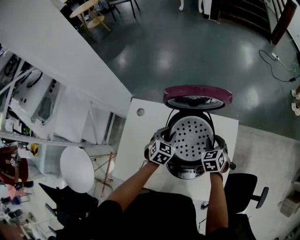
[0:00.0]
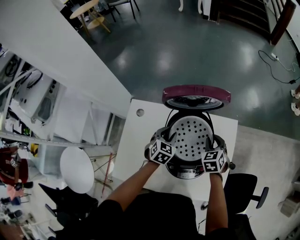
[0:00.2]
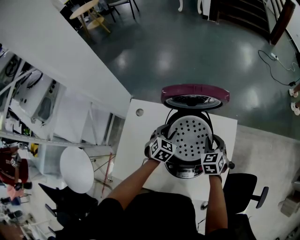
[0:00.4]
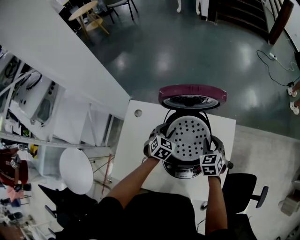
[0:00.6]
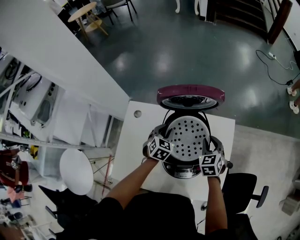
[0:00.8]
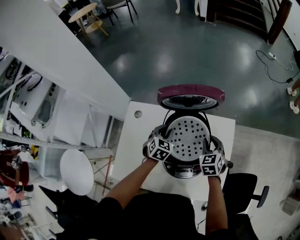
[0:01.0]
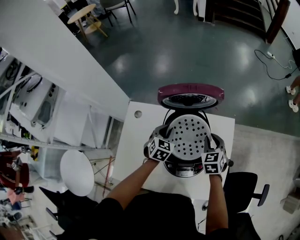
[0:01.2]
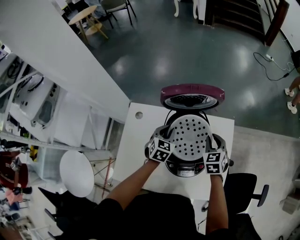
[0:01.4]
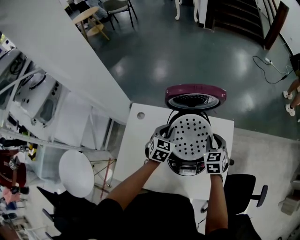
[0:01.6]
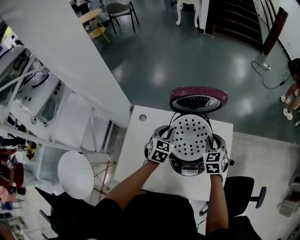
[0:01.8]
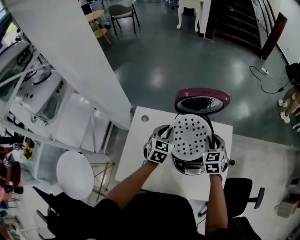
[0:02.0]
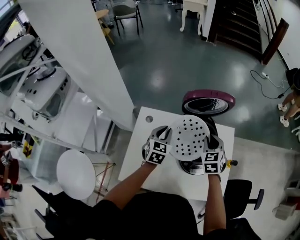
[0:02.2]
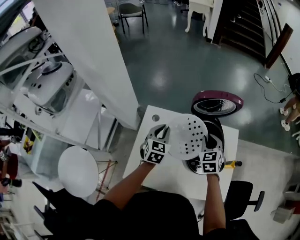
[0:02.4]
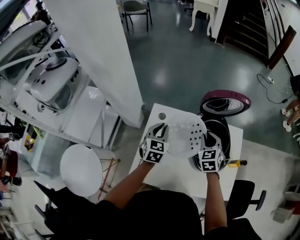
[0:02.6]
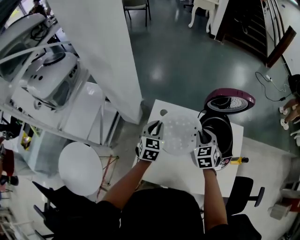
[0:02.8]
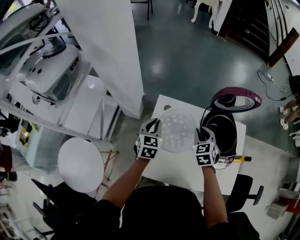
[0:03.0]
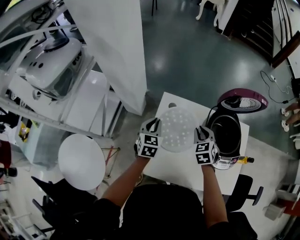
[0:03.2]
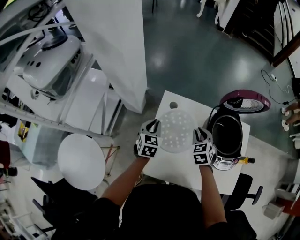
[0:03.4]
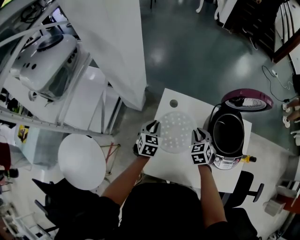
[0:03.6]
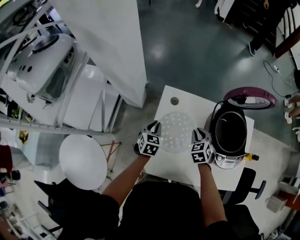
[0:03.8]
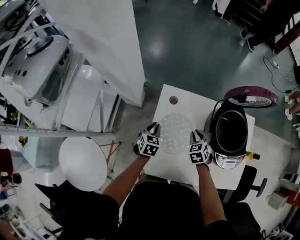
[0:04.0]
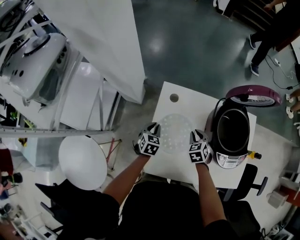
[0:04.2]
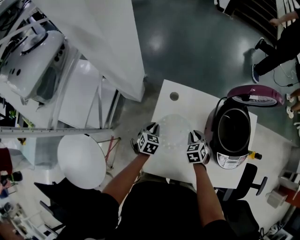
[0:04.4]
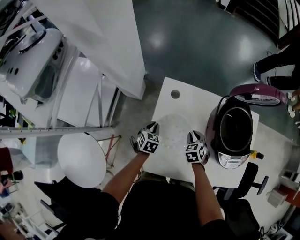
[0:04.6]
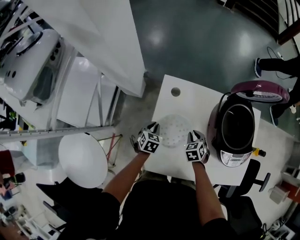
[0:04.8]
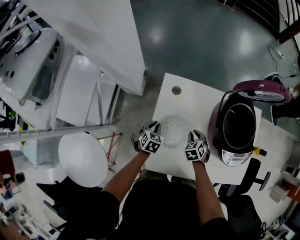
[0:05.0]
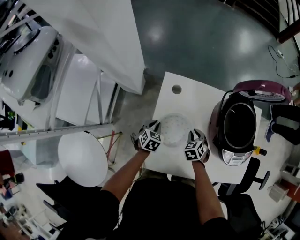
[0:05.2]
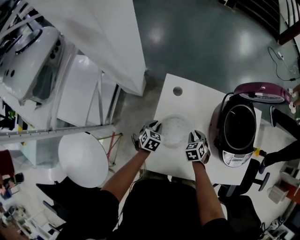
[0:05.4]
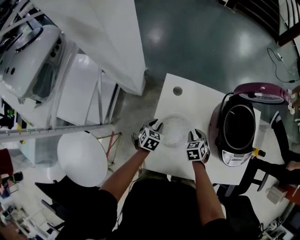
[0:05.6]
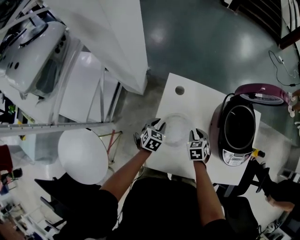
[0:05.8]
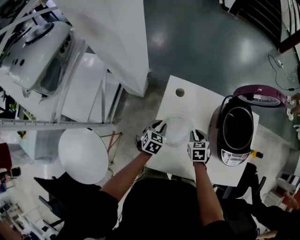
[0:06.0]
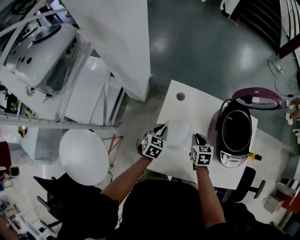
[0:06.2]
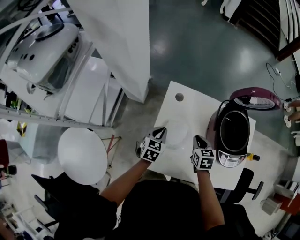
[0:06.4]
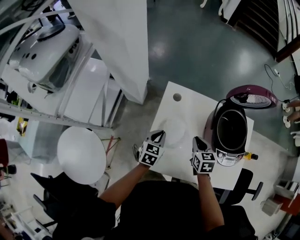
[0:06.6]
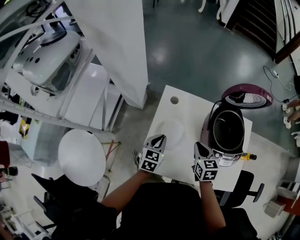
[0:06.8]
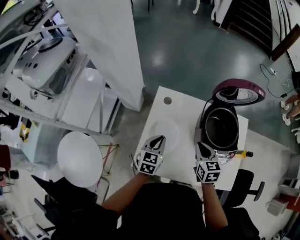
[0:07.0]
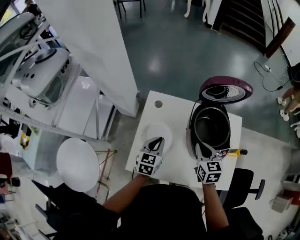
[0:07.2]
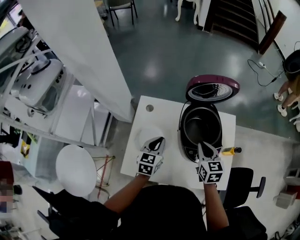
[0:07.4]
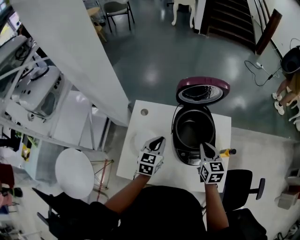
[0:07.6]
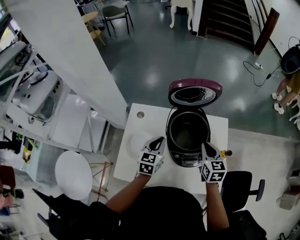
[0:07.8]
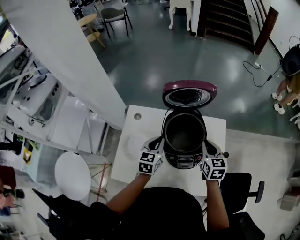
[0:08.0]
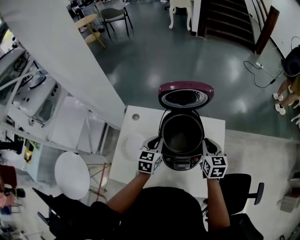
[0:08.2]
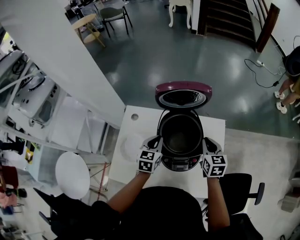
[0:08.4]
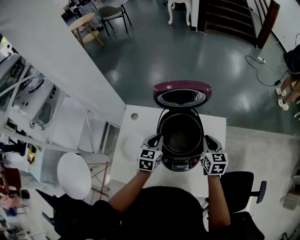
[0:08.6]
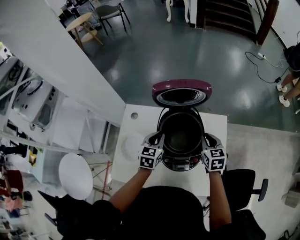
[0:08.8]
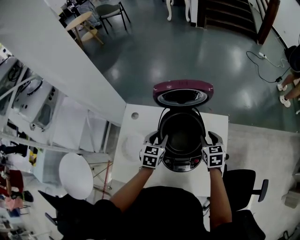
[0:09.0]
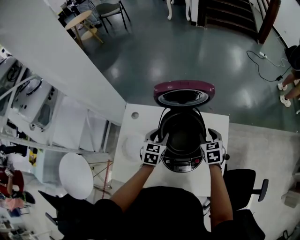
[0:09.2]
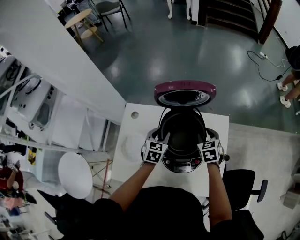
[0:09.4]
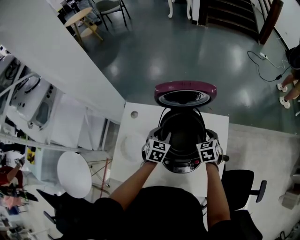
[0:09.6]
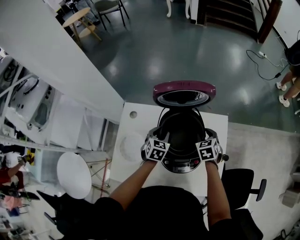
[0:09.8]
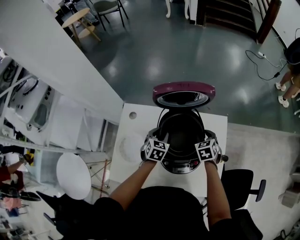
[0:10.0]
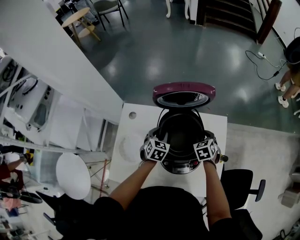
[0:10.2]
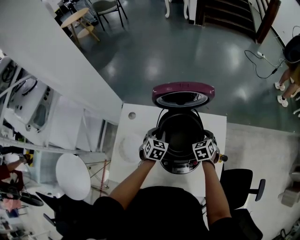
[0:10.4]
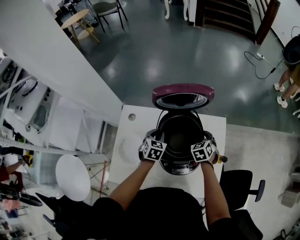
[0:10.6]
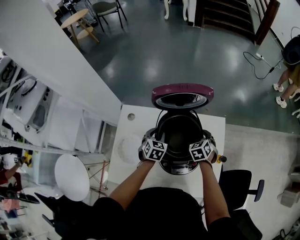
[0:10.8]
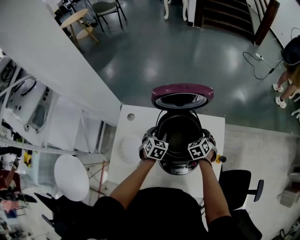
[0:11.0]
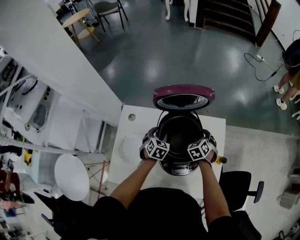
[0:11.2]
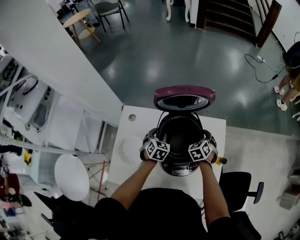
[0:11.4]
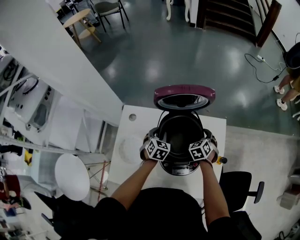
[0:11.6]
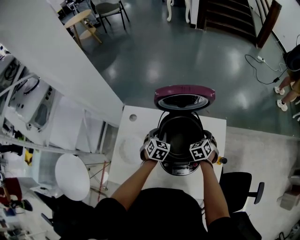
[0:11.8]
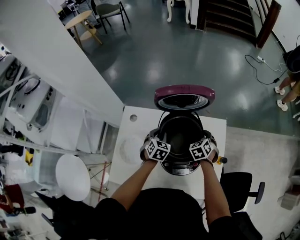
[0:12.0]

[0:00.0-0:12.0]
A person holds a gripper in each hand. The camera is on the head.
0.0 to 1.6 s: The two grippers go about 5 cm upward.
1.6 to 3.0 s: Both grippers move to the left, some 30 cm.
3.0 to 4.4 s: Both grippers travel together downward, about 20 cm. The left gripper swivels about 20 degrees.
4.4 to 6.0 s: The grippers move only a little.
6.0 to 7.6 s: Both grippers travel together to the right and upward, approximately 30 cm. The right gripper rotates about 30 degrees.
7.6 to 9.0 s: The right gripper is displaced to the right, forward and downward by roughly 15 cm, and opens. The left gripper is displaced to the right and forward by roughly 10 cm, and opens.
9.0 to 10.4 s: The grippers both shift downward by roughly 5 cm. The right gripper changes its angle by approximately 20 degrees.
10.4 to 12.0 s: The left gripper opens and closes again.

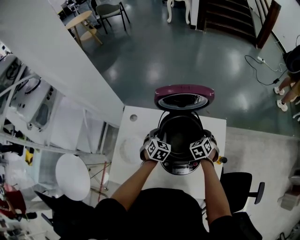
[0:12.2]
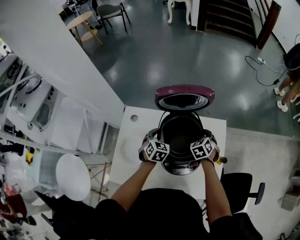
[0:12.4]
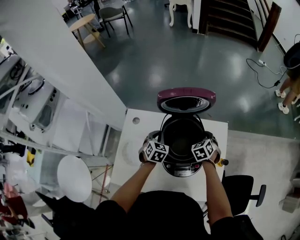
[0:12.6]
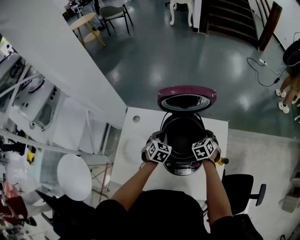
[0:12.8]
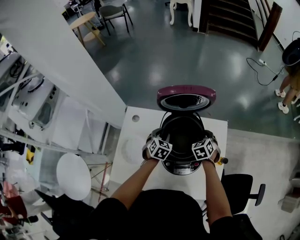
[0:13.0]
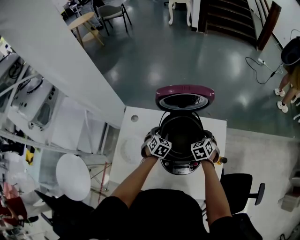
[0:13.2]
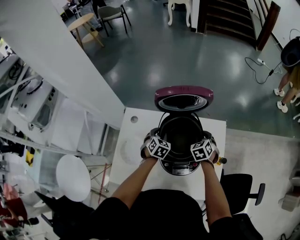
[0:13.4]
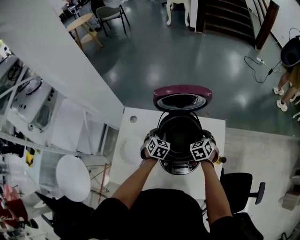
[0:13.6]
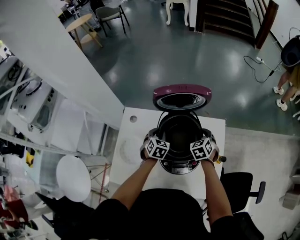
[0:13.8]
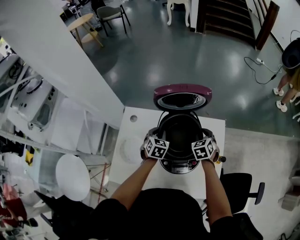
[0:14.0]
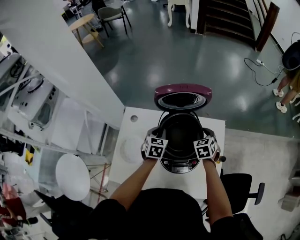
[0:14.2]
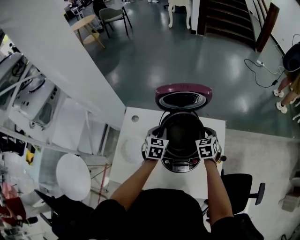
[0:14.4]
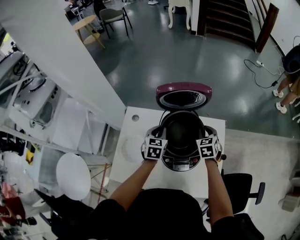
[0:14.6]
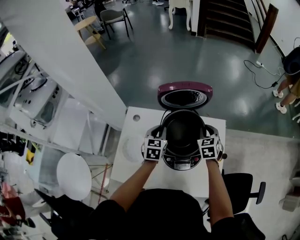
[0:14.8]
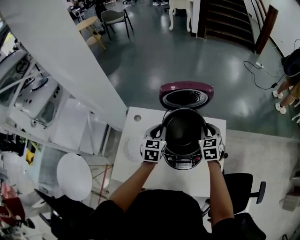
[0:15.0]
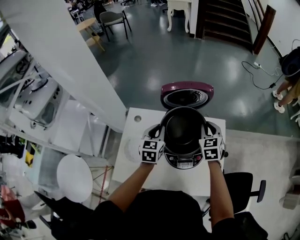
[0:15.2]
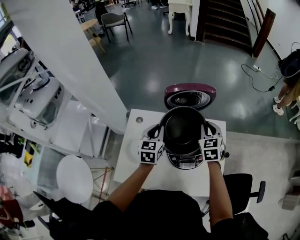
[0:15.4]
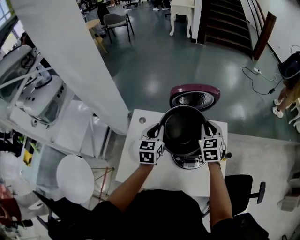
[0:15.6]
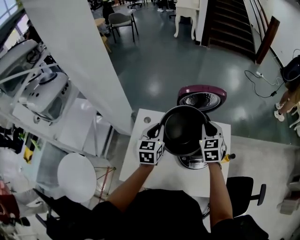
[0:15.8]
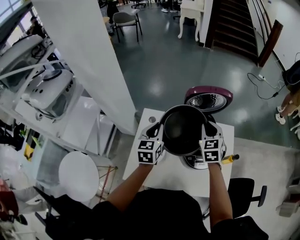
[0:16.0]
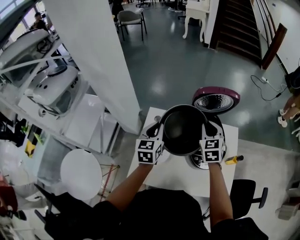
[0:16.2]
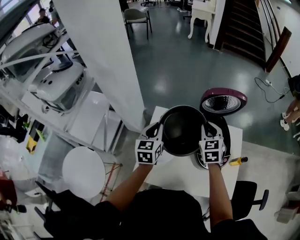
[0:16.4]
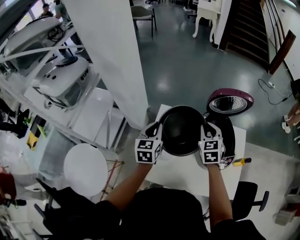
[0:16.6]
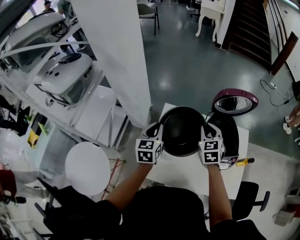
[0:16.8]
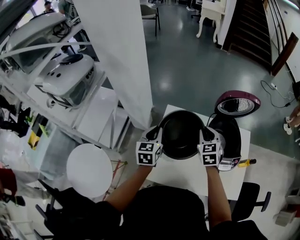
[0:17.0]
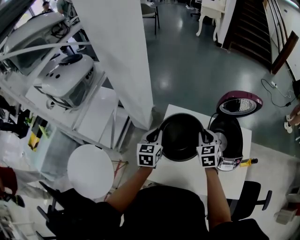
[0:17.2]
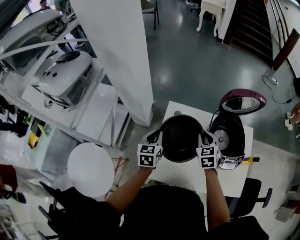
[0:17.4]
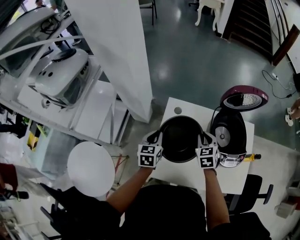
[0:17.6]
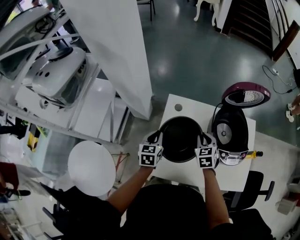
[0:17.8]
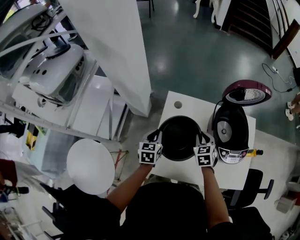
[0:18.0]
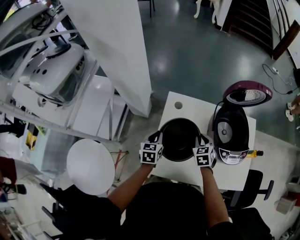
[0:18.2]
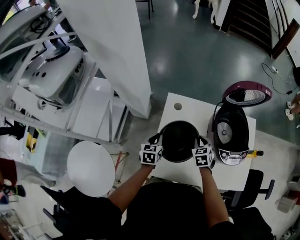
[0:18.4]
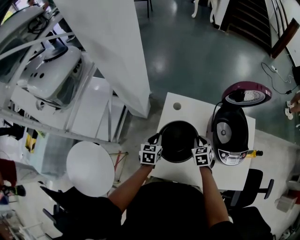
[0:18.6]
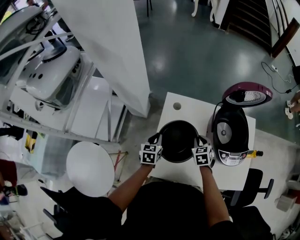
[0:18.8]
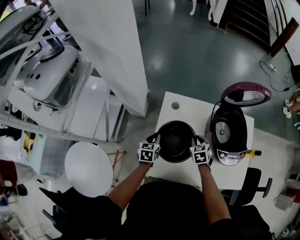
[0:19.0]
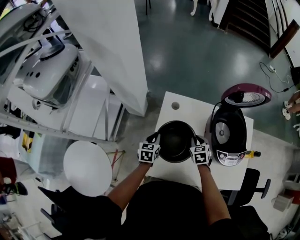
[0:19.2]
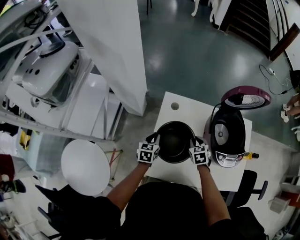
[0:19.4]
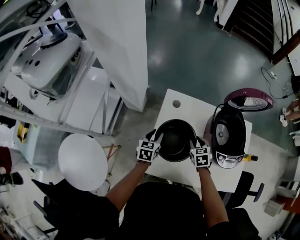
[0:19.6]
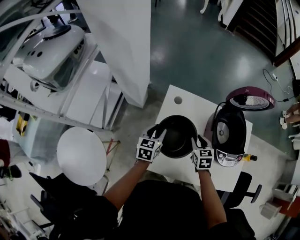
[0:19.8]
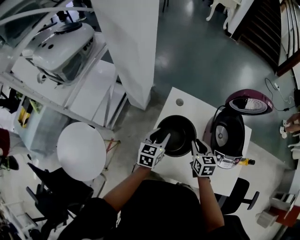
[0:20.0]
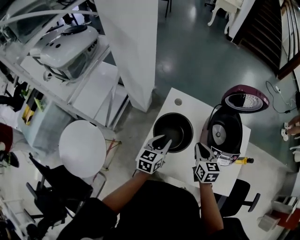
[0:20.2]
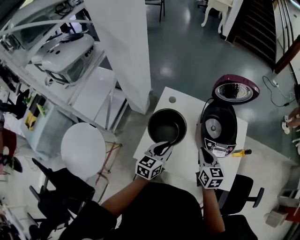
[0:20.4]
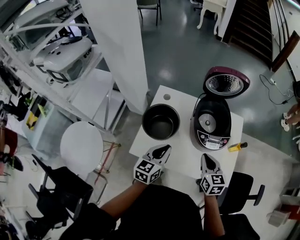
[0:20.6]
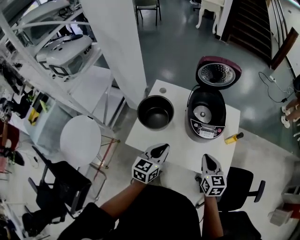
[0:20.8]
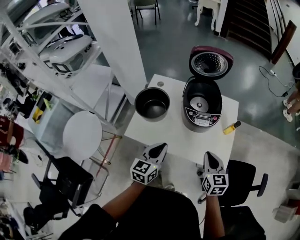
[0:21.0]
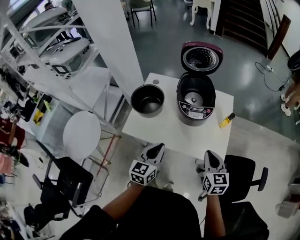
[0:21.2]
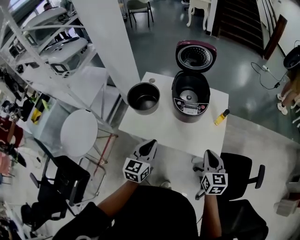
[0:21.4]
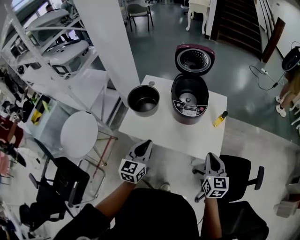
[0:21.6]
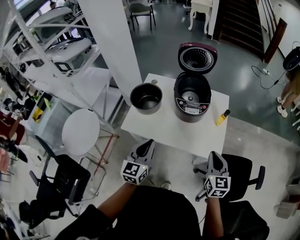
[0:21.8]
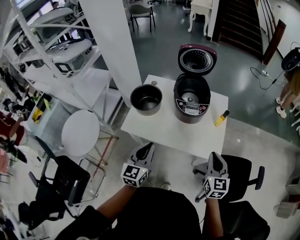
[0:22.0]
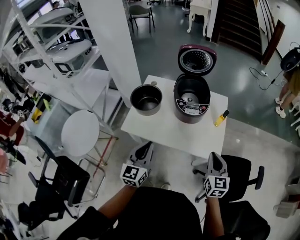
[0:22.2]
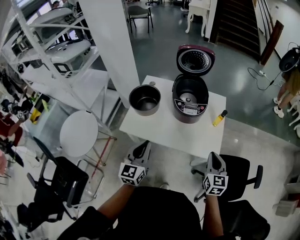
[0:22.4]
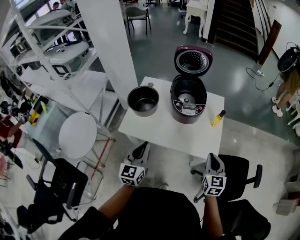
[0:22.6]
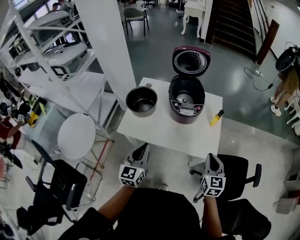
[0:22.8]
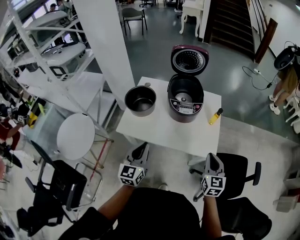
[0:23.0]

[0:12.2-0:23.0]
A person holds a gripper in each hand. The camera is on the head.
12.2 to 13.8 s: The left gripper opens, then closes again.
13.8 to 15.2 s: Both grippers travel together upward, some 15 cm. The left gripper swivels roughly 30 degrees.
15.2 to 16.8 s: The grippers both shift to the left by about 25 cm.
16.8 to 18.4 s: Both grippers move downward, approximately 20 cm. The right gripper swivels about 20 degrees.
18.4 to 20.0 s: Both grippers move upward, about 5 cm. The left gripper opens; the right gripper rotates approximately 20 degrees.
20.0 to 21.4 s: The left gripper travels backward and to the right by approximately 40 cm, and closes, while the right gripper is displaced to the right and backward by approximately 50 cm.
21.4 to 23.0 s: The left gripper ends up about 5 cm from where it was; the right gripper ends up about 5 cm from where it was.

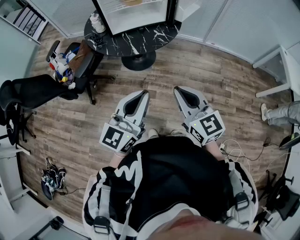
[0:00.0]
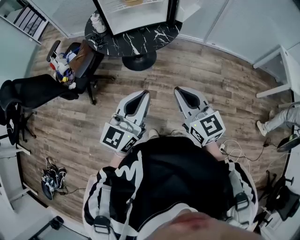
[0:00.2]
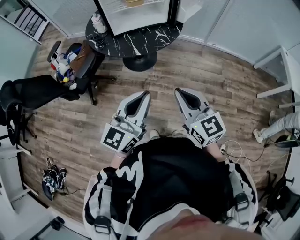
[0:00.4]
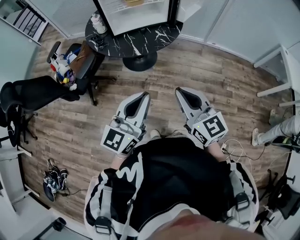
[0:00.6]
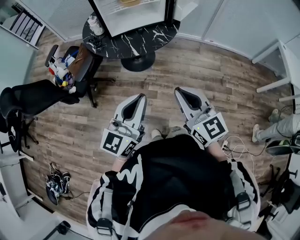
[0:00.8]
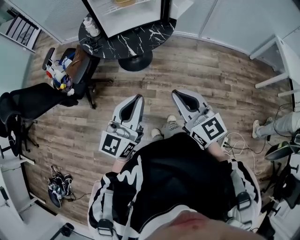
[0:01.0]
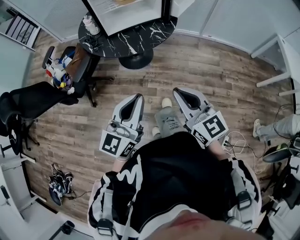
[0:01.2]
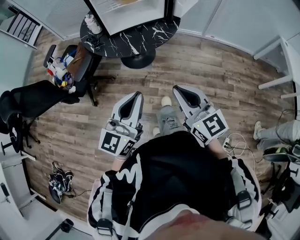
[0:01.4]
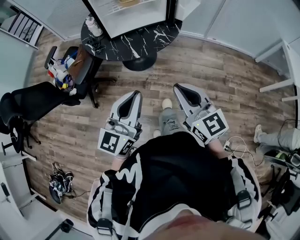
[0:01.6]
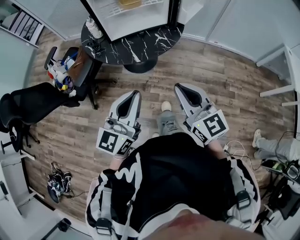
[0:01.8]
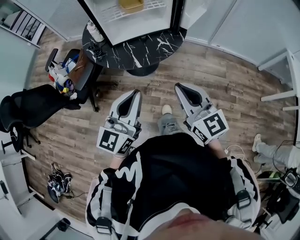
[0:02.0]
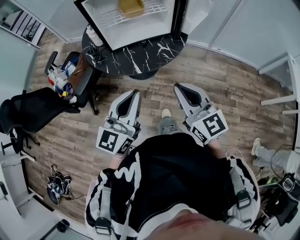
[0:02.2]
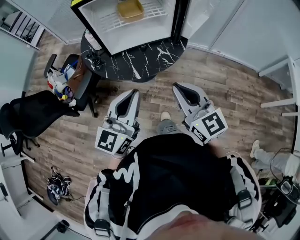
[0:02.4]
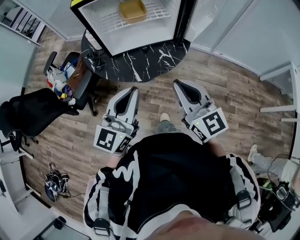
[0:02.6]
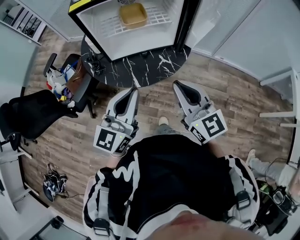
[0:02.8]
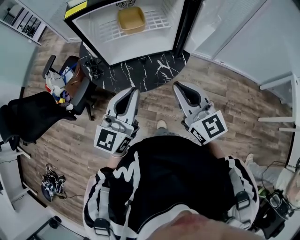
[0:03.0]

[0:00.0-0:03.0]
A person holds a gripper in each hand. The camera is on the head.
0.0 to 1.6 s: The left gripper moves forward, about 5 cm.
1.6 to 3.0 s: Both grippers move forward, approximately 25 cm.
